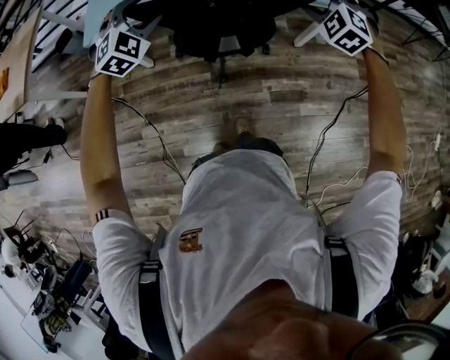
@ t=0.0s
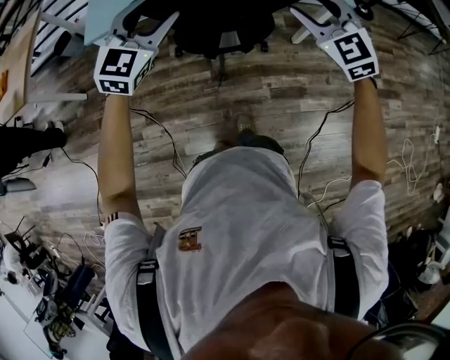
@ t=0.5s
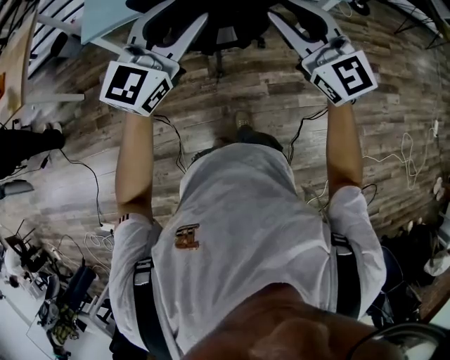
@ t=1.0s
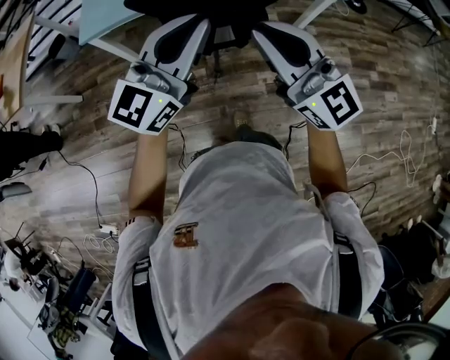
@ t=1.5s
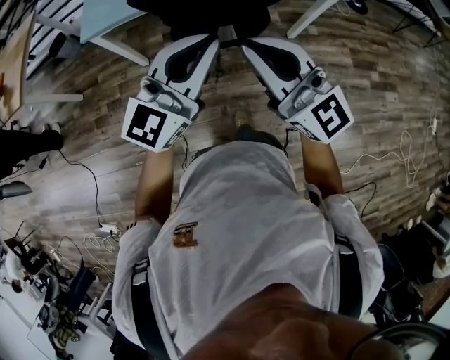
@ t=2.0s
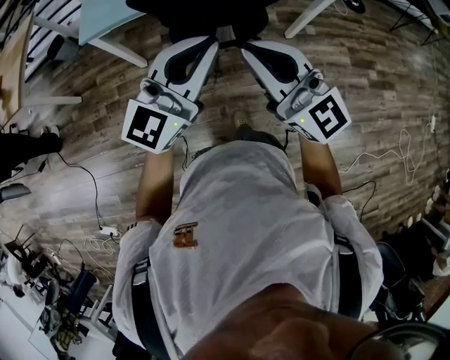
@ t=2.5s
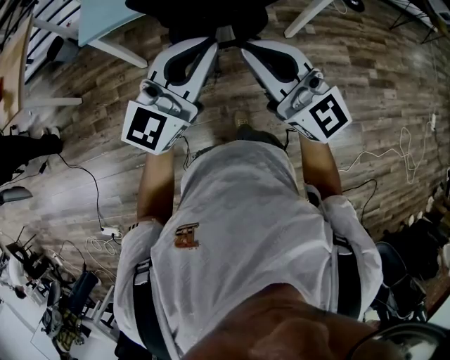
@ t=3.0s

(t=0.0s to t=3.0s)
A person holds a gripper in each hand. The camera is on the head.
t=0.0s - t=1.5s: The right gripper shifts some 30 cm backward, to the left and upward, angles its fingers upward, by some 50 degrees, and closes. Meanwhile the left gripper goes about 25 cm backward, upward and to the right, tips its fingers upward by approximately 40 degrees, and closes.
t=1.5s - t=3.0s: The grippers stay close to where they were, moving slightly.

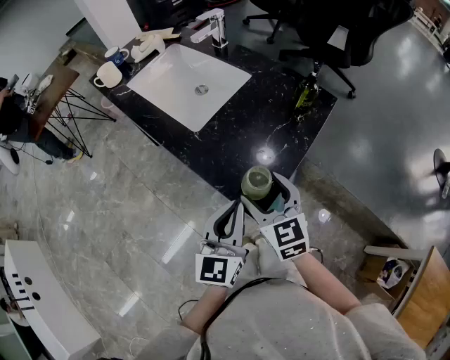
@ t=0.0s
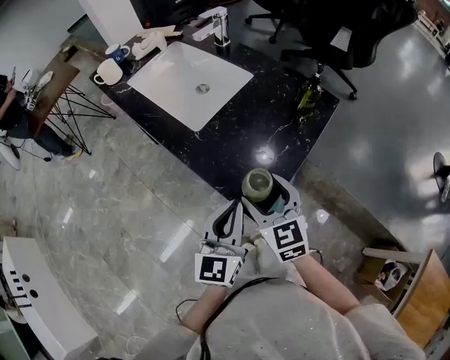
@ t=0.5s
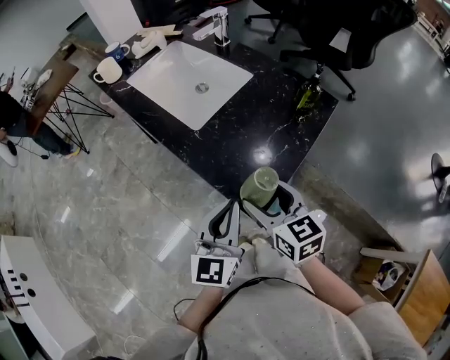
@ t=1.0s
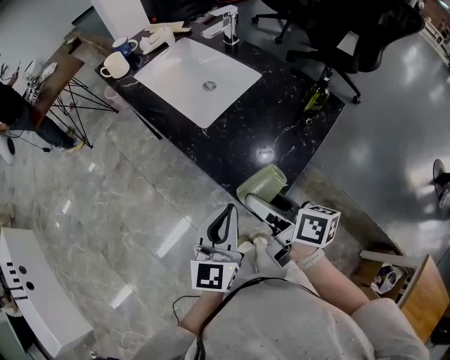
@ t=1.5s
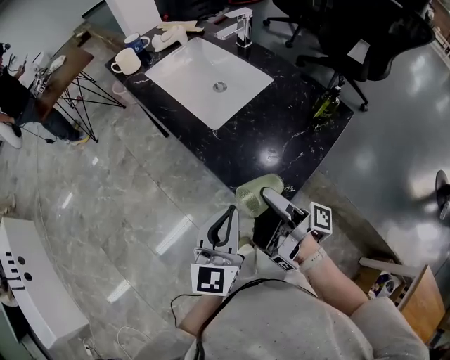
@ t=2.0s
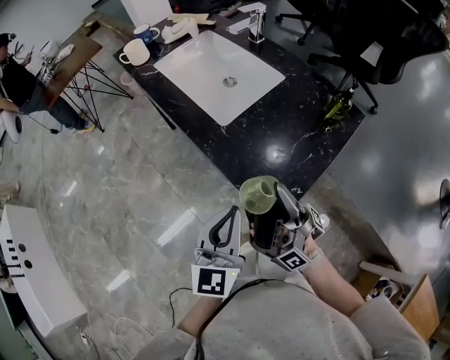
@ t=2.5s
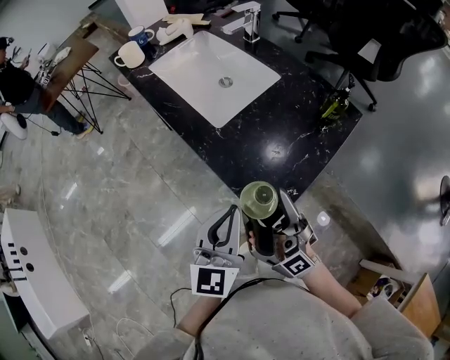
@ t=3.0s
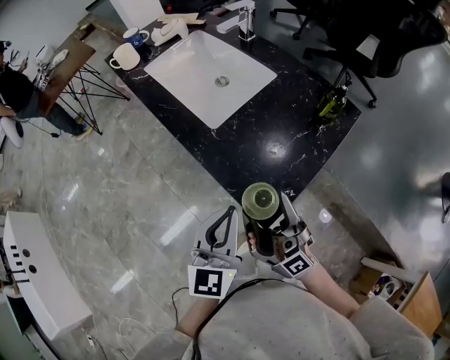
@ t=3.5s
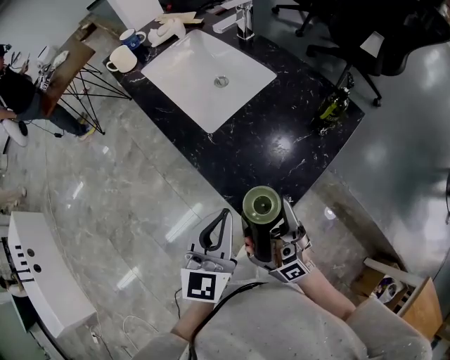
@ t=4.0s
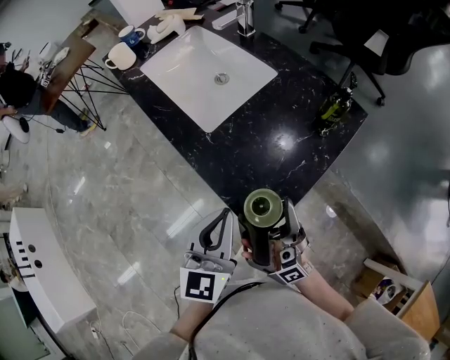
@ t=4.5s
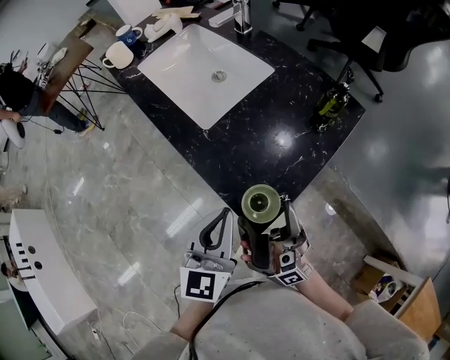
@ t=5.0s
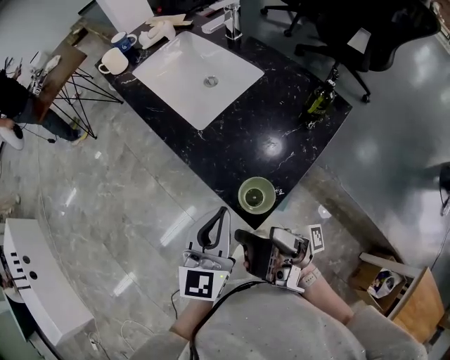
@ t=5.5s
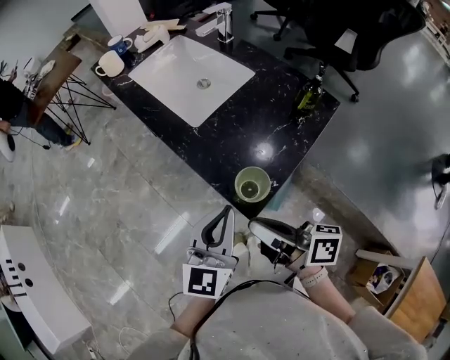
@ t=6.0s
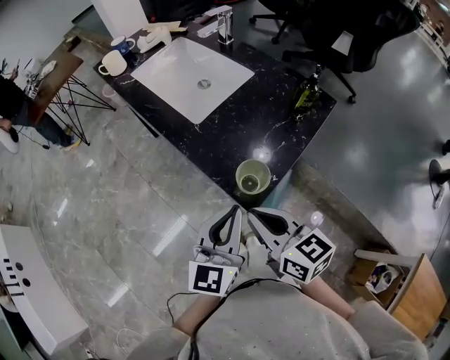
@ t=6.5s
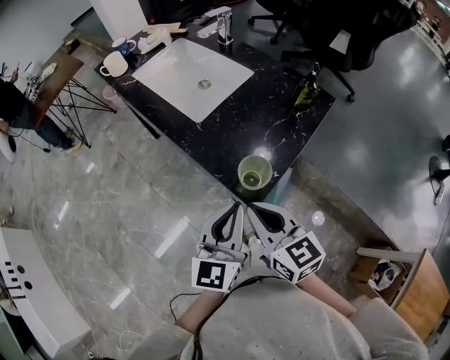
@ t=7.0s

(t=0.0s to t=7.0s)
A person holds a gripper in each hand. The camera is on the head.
t=0.0s - t=2.0s: The left gripper changes place by some 5 cm.
t=5.0s - t=7.0s: The left gripper shifts by about 5 cm.

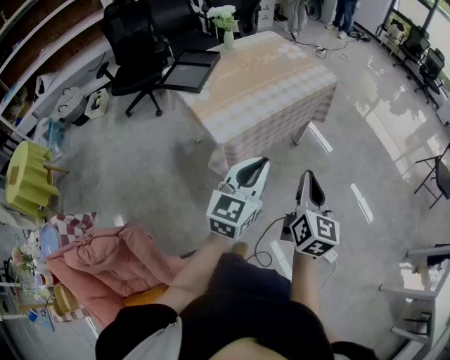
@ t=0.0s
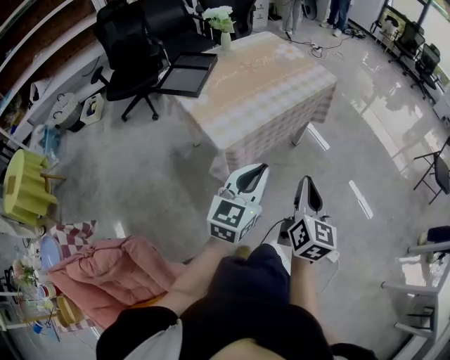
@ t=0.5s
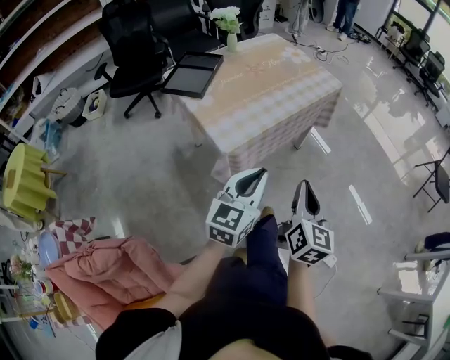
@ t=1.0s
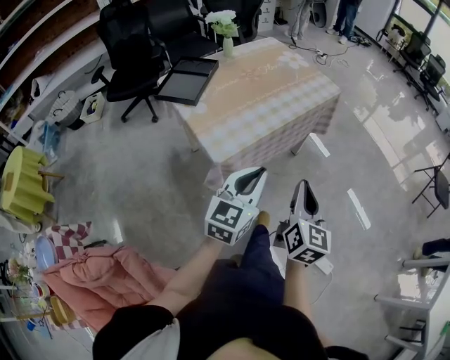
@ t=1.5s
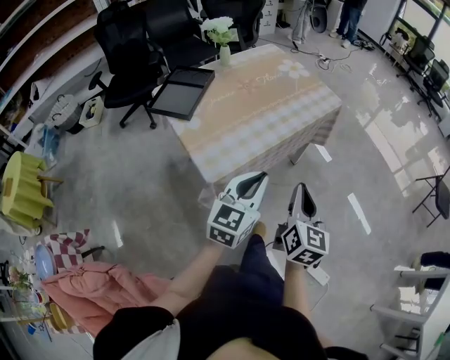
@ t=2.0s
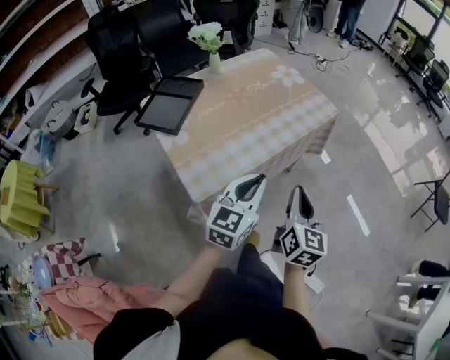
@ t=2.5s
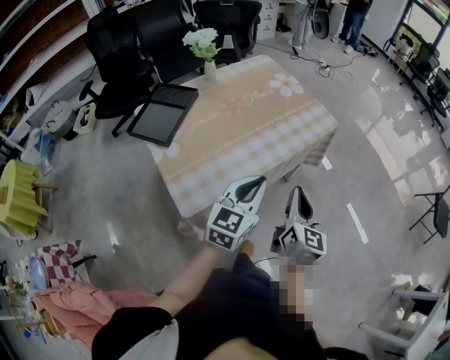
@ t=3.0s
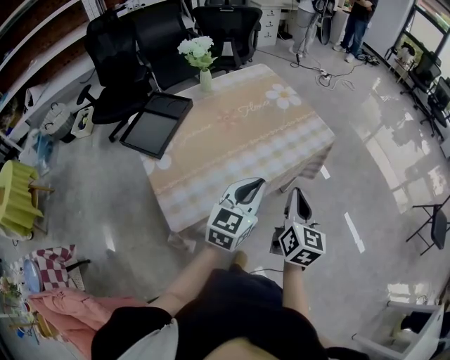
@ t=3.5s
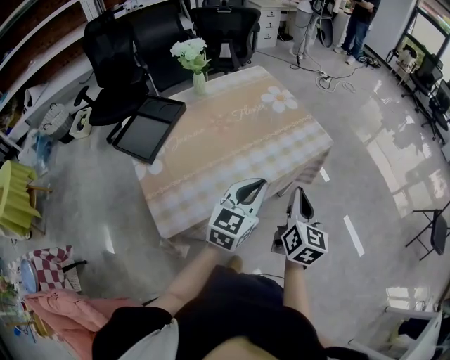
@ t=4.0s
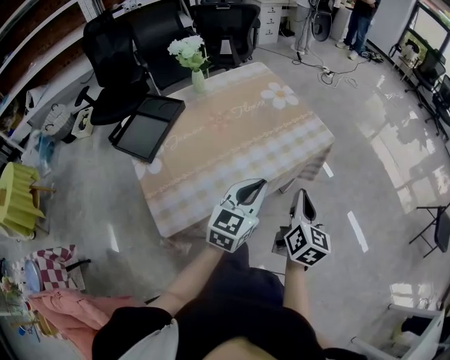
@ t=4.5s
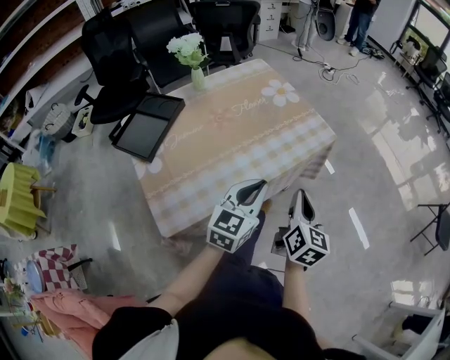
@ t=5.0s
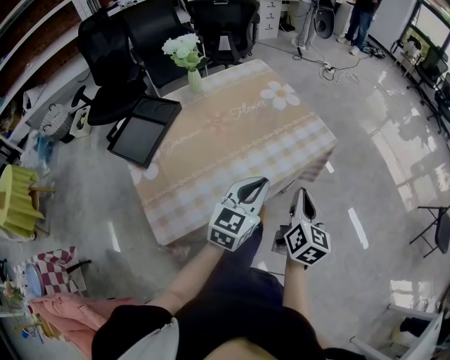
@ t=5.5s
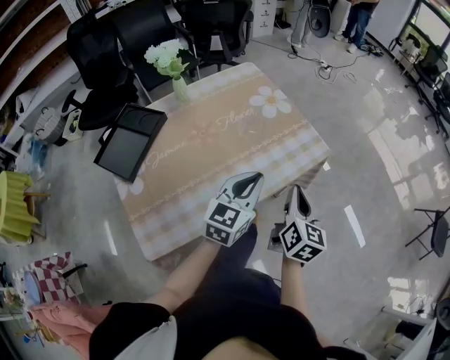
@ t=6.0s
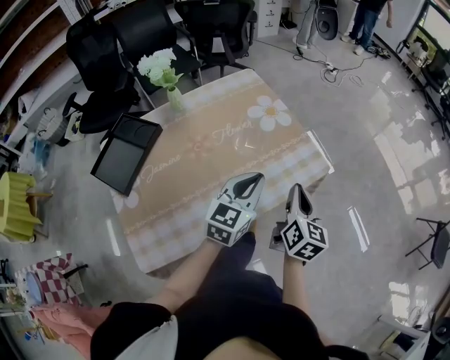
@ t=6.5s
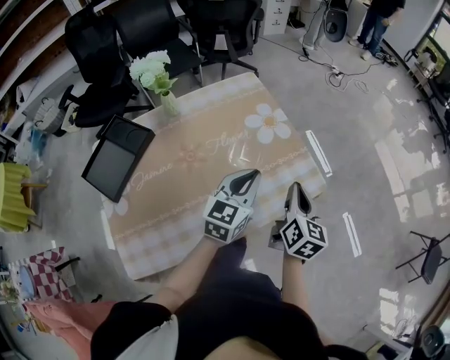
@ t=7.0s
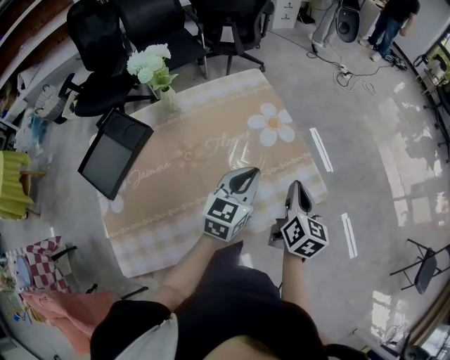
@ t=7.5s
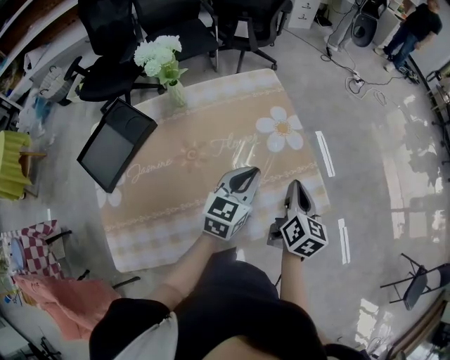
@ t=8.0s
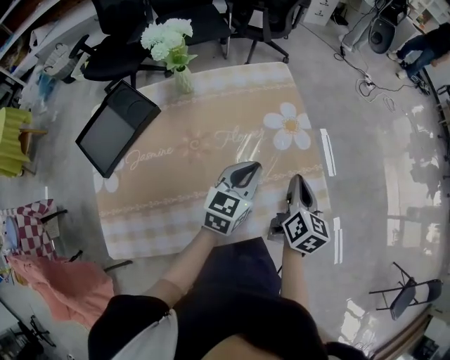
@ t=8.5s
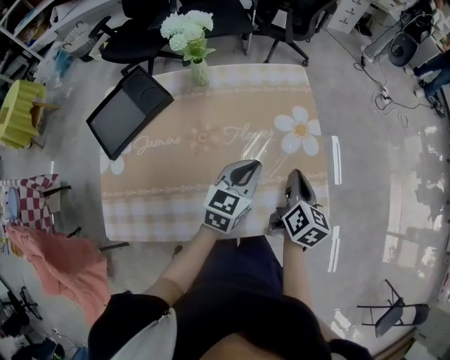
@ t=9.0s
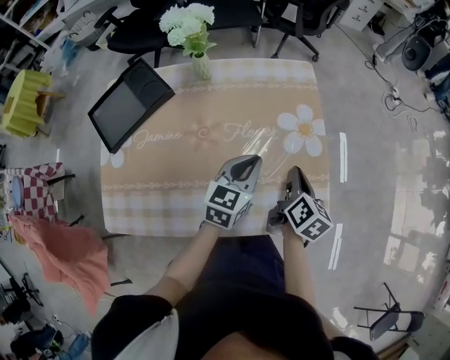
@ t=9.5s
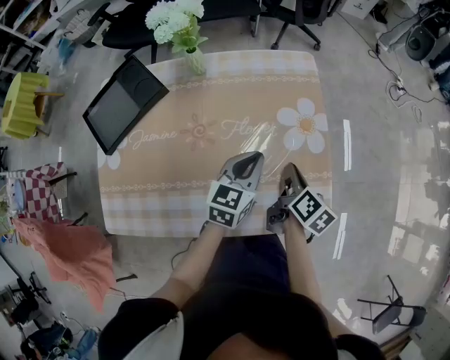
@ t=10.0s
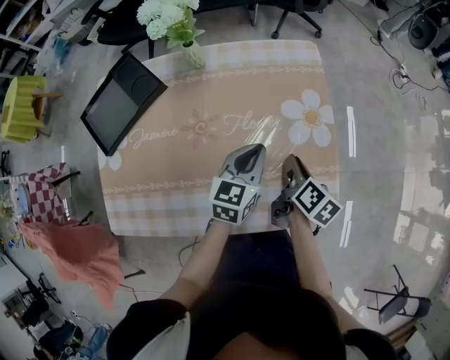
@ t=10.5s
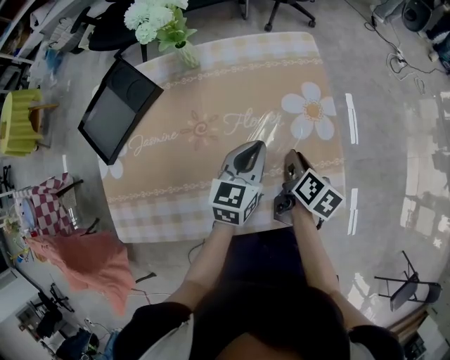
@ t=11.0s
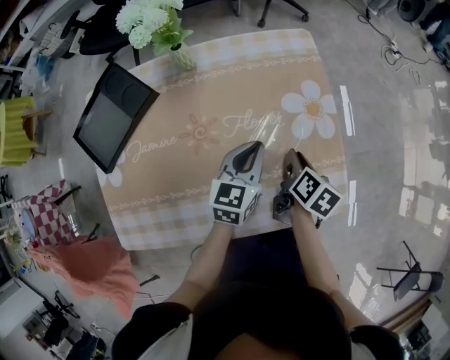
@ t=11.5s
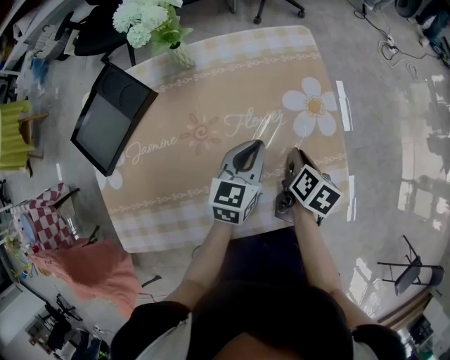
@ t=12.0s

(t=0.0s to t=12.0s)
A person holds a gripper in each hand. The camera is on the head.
t=0.0s - t=2.0s: Both grippers move forward, some 15 cm.
t=2.0s - t=4.0s: Both grippers travel together forward, about 25 cm.
t=4.0s - t=6.0s: The grippers both shift forward by approximately 10 cm.
t=6.0s - t=8.0s: The grippers both shift forward by some 20 cm.
t=8.0s - t=10.0s: The right gripper is displaced downward and forward by some 10 cm, and swivels about 30 degrees. Meanwhile the left gripper shifts by roughly 5 cm.
t=10.0s - t=12.0s: The grippers make only small movements.

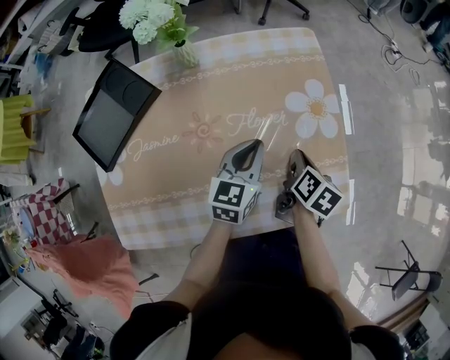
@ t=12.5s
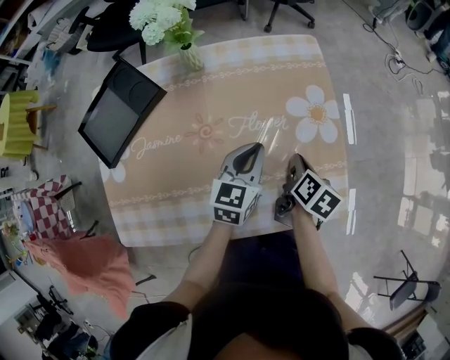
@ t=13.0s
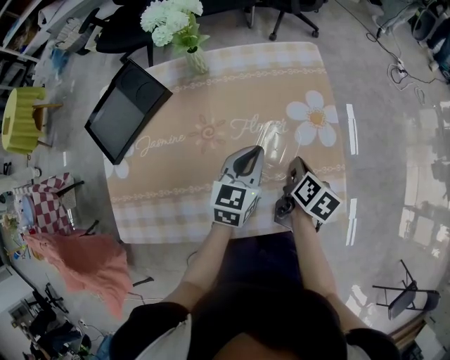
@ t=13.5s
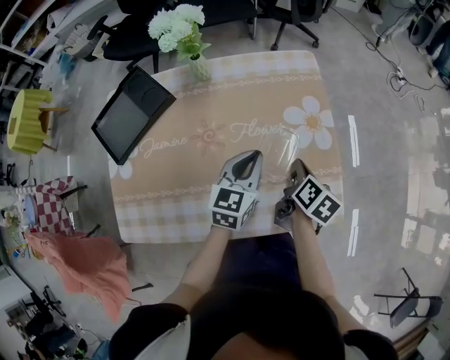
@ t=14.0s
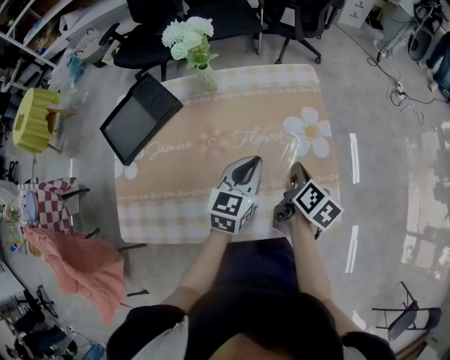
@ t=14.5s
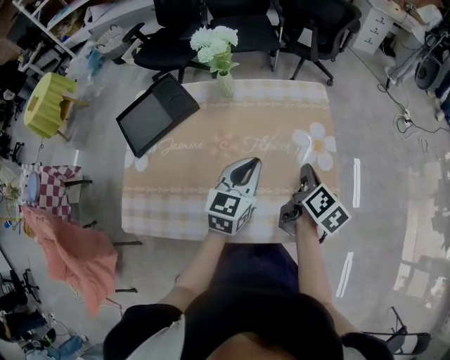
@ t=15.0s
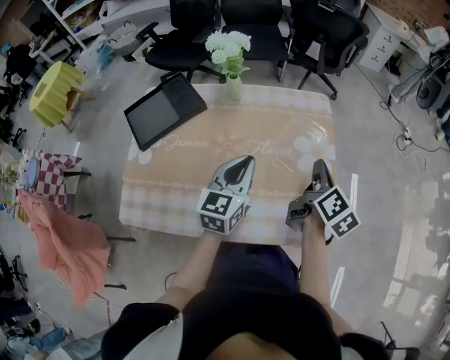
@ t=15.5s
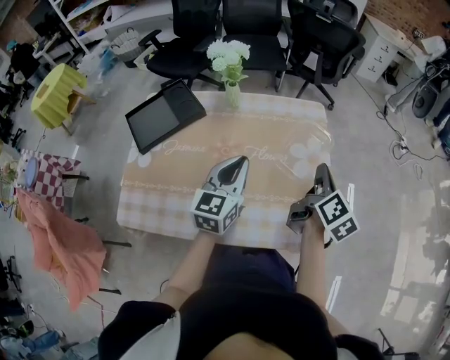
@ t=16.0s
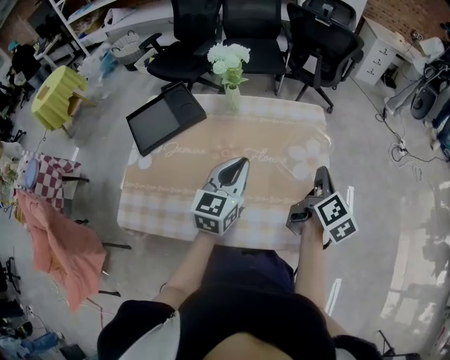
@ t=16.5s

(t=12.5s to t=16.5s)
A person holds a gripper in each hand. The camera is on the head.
t=12.5s - t=14.5s: The grippers both shift upward by about 5 cm.
t=14.5s - t=16.5s: The right gripper shifts some 10 cm upward, and changes its angle by some 20 degrees; the left gripper travels upward and to the left by roughly 10 cm.
